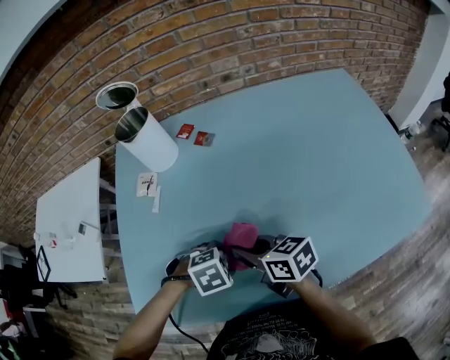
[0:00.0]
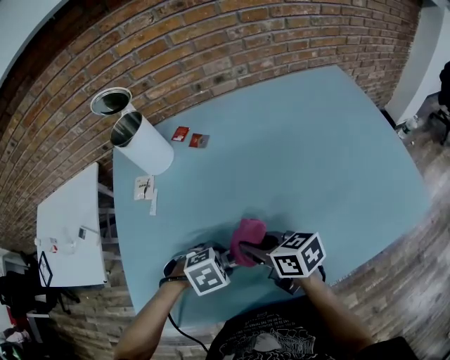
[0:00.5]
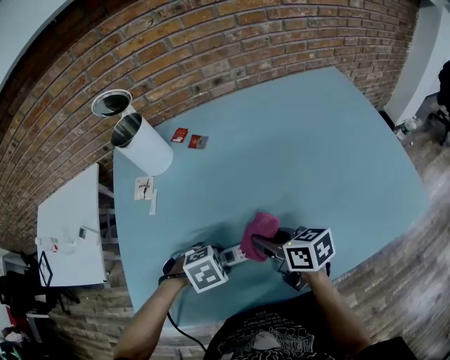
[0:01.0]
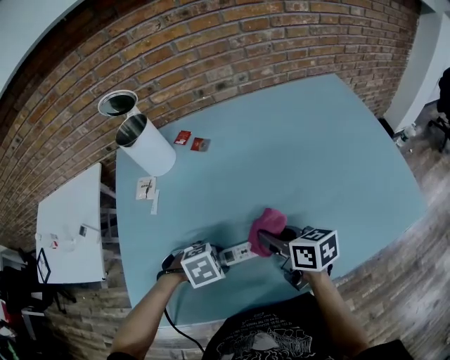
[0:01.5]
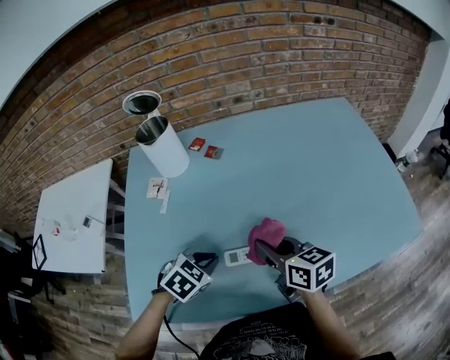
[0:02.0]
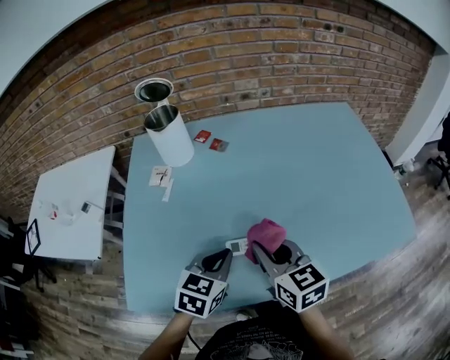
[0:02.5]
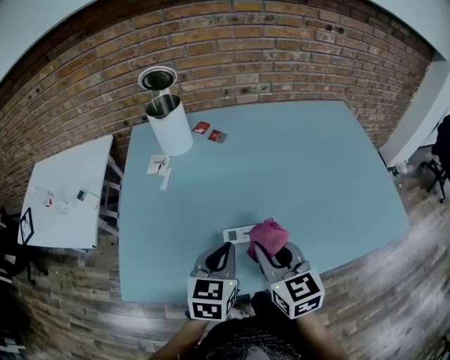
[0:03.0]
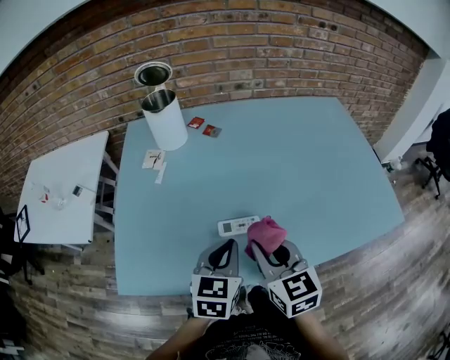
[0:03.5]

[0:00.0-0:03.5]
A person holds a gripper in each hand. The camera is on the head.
0:00.0 to 0:02.0: The left gripper heads upward, covering about 5 cm, changes its angle by roughly 30 degrees, and closes up. Meanwhile the right gripper changes place by about 10 cm.
0:02.0 to 0:03.5: The right gripper is displaced backward by roughly 10 cm, and turns by some 30 degrees, while the left gripper goes about 10 cm upward, backward and to the right, and rotates about 40 degrees.

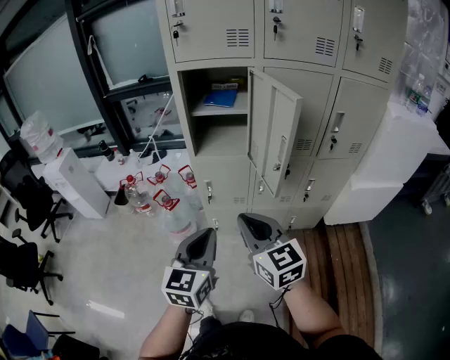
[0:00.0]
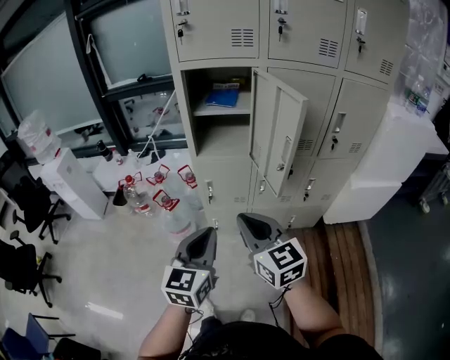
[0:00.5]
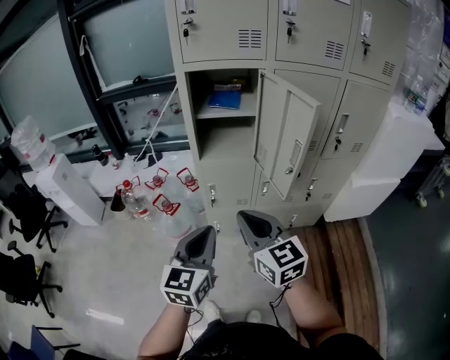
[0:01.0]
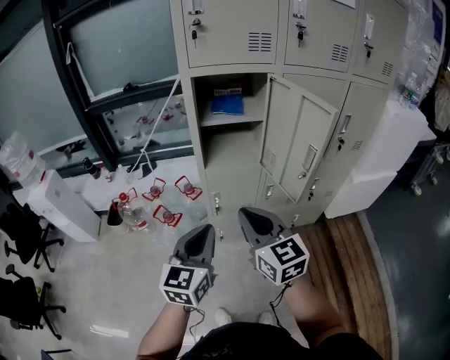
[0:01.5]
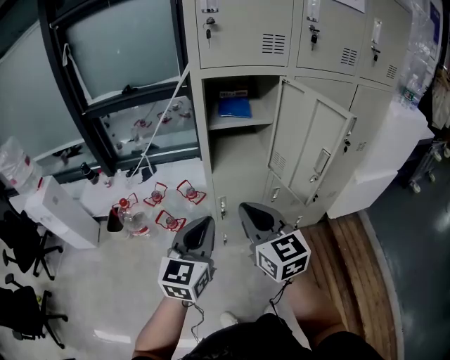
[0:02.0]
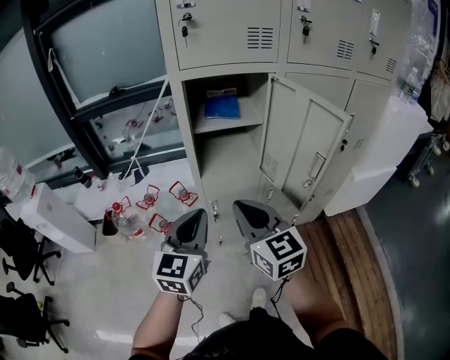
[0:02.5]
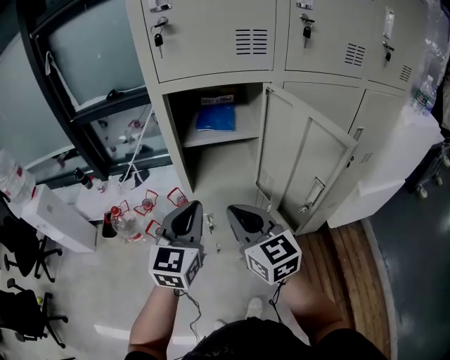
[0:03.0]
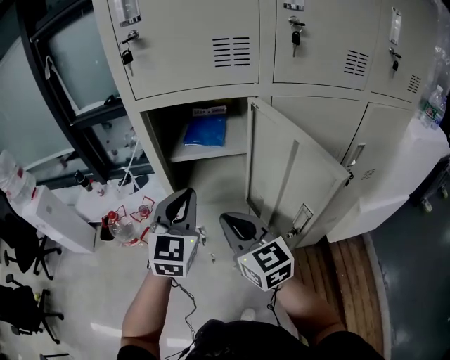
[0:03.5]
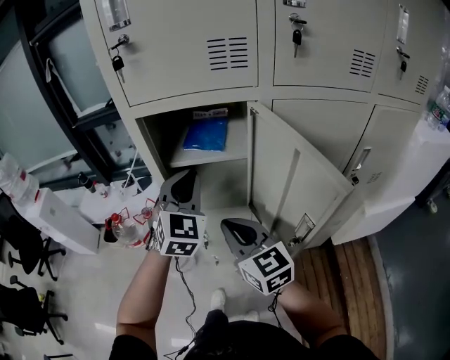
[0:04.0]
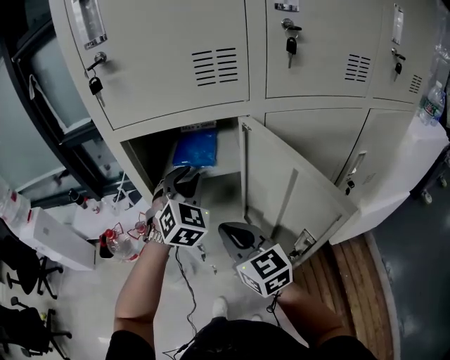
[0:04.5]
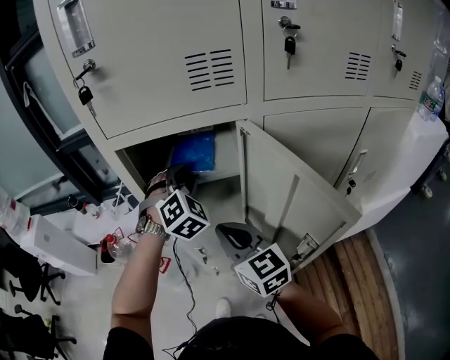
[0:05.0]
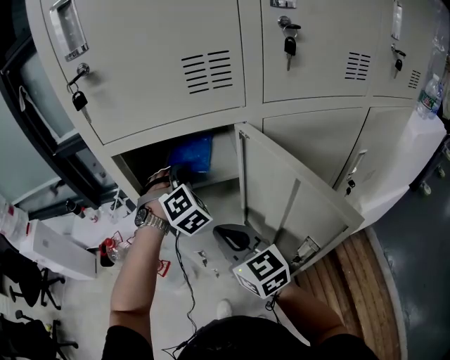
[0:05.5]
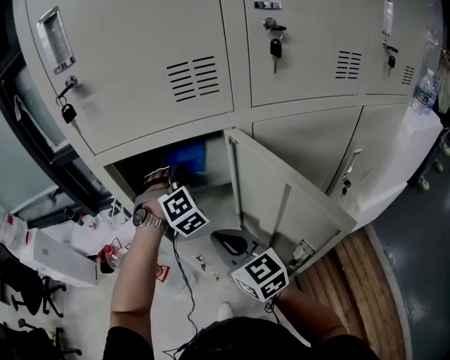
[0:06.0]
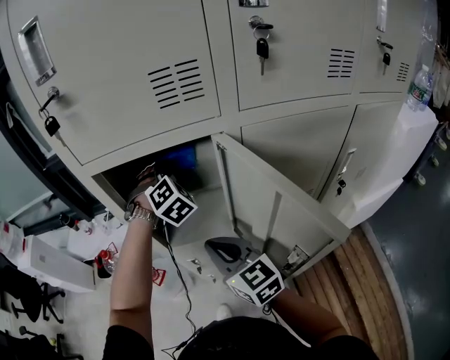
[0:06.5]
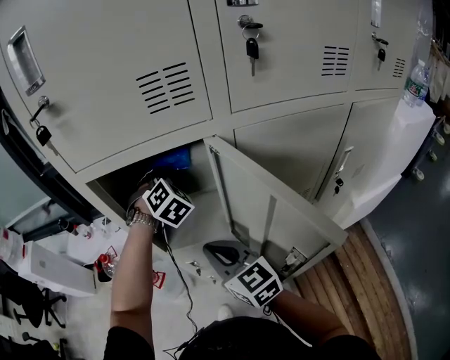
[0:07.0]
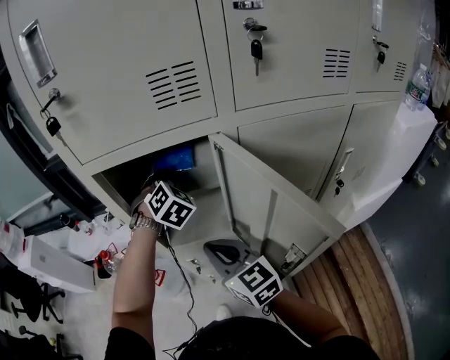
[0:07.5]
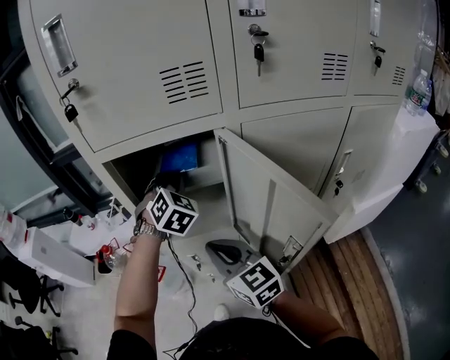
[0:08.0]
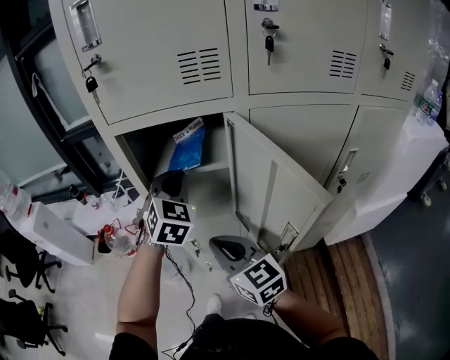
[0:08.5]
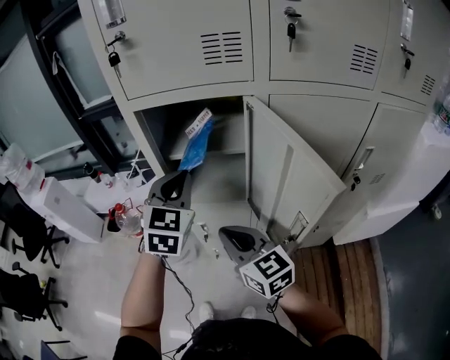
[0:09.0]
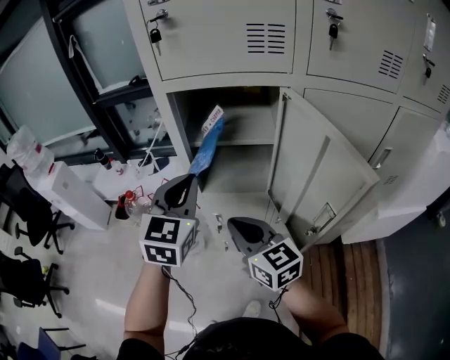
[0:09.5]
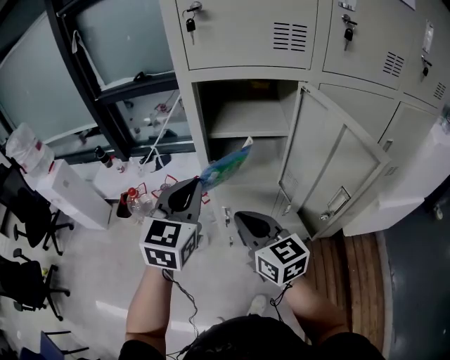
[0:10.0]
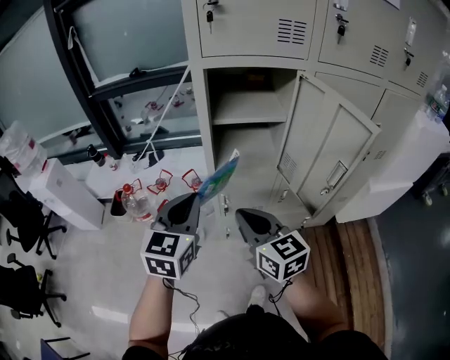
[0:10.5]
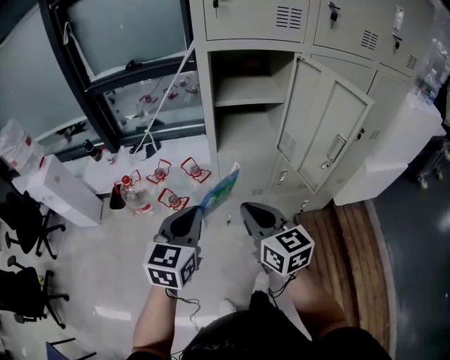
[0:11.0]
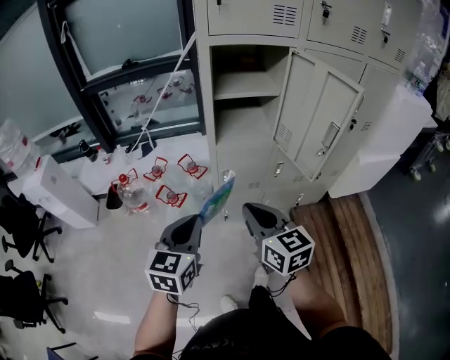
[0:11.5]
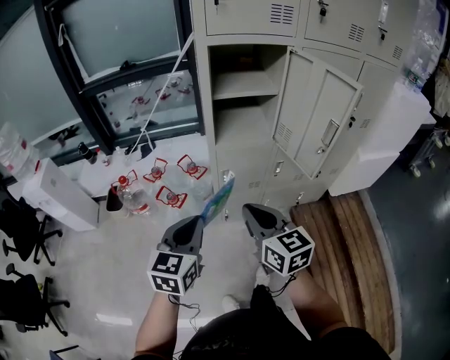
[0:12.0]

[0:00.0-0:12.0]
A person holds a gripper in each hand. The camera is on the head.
0:00.0 to 0:02.0: The grippers both shift to the left and forward by approximately 20 cm.
0:02.0 to 0:04.0: The right gripper goes roughly 20 cm forward and to the right, while the left gripper goes approximately 30 cm forward and to the right, and swivels approximately 40 degrees.
0:04.0 to 0:06.0: The right gripper shifts about 5 cm forward. Meanwhile the left gripper shifts about 15 cm forward and to the right, twists roughly 40 degrees clockwise, seen from behind, and opens up.
0:06.0 to 0:08.0: The left gripper turns by approximately 30 degrees, and closes its fingers.
0:08.0 to 0:10.0: The left gripper moves backward and to the left, about 25 cm, and turns by approximately 40 degrees. The right gripper moves to the left and backward, about 10 cm.
0:10.0 to 0:12.0: The left gripper heads backward, downward and to the left, covering about 25 cm. The right gripper moves backward and to the left, some 15 cm.

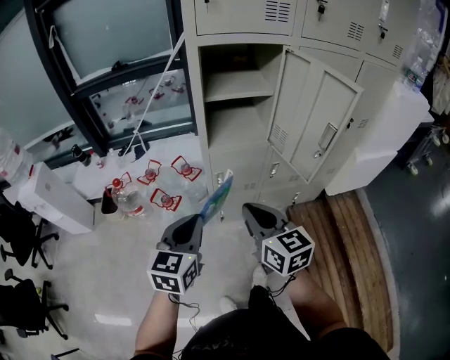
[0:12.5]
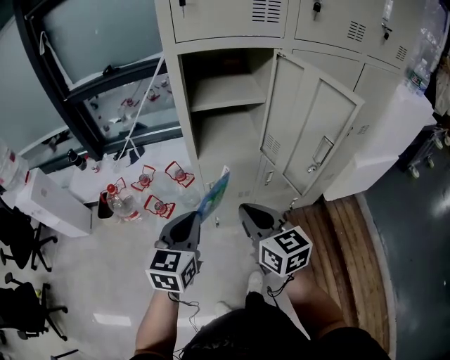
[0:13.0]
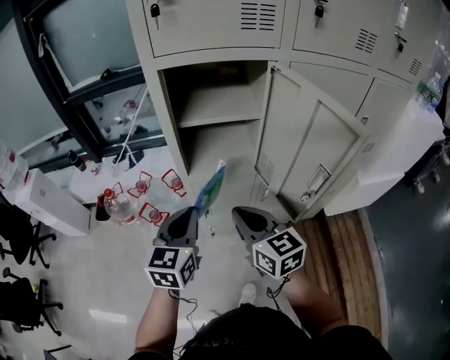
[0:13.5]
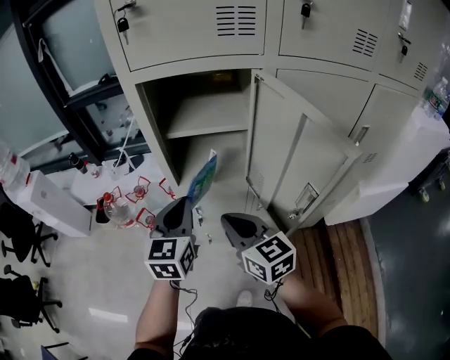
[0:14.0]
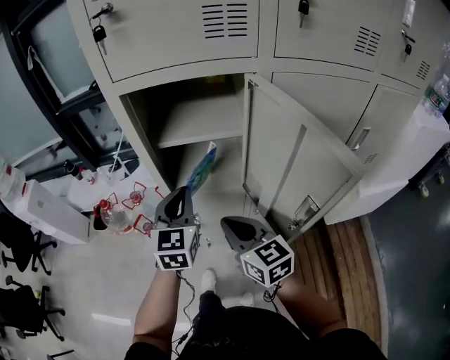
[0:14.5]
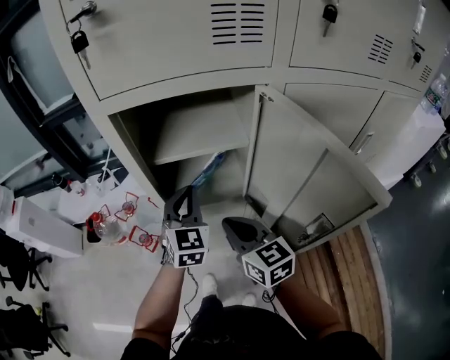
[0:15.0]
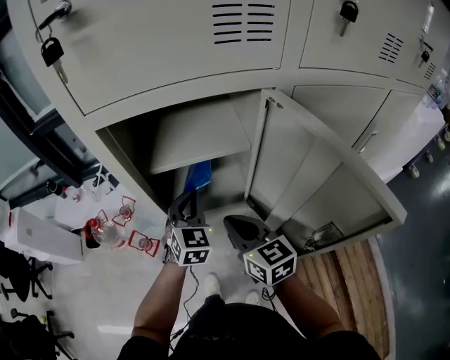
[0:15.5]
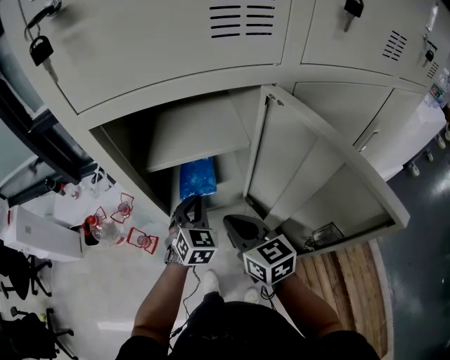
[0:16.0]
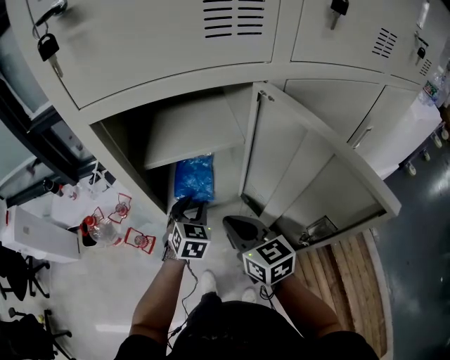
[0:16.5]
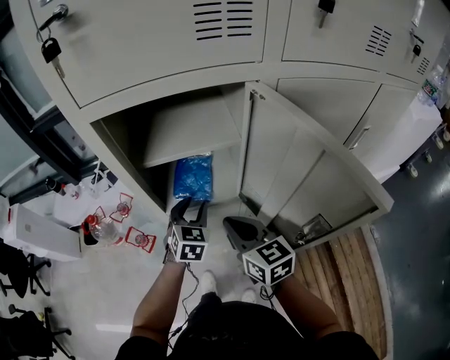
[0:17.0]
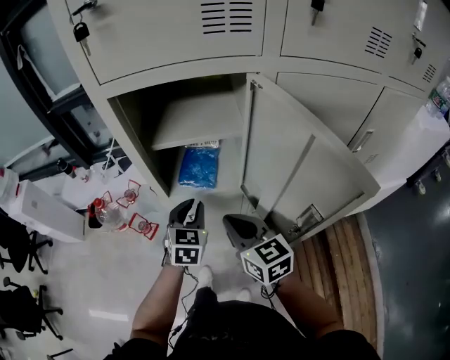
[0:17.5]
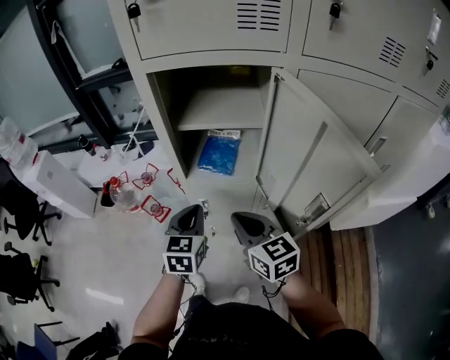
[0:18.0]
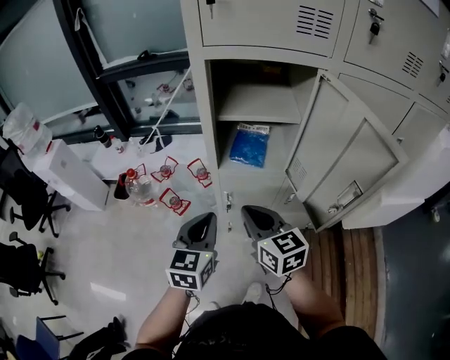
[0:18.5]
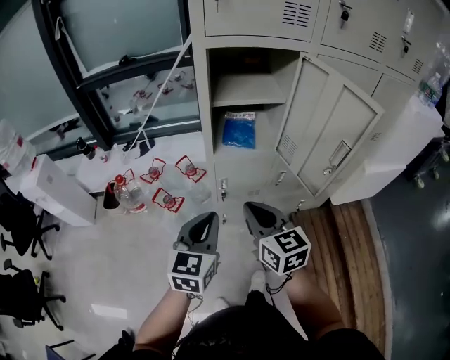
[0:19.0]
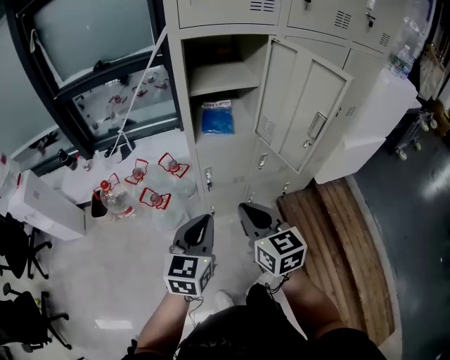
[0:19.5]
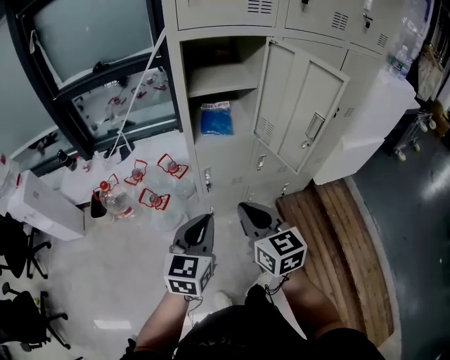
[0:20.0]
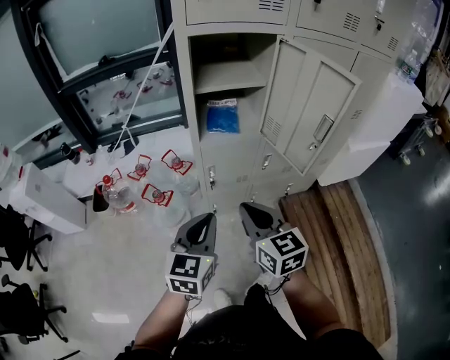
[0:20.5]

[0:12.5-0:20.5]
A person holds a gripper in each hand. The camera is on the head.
0:12.5 to 0:14.5: The grippers both shift forward and to the right by roughly 25 cm.
0:14.5 to 0:16.5: The left gripper goes approximately 15 cm downward and forward, changes its angle by roughly 30 degrees, and opens. Meanwhile the right gripper goes some 5 cm forward.
0:16.5 to 0:18.5: The left gripper moves backward, to the left and upward, approximately 25 cm, turns by some 30 degrees, and closes its fingers. The right gripper moves to the left and backward, about 15 cm.
0:18.5 to 0:20.5: Both grippers move backward, some 15 cm.

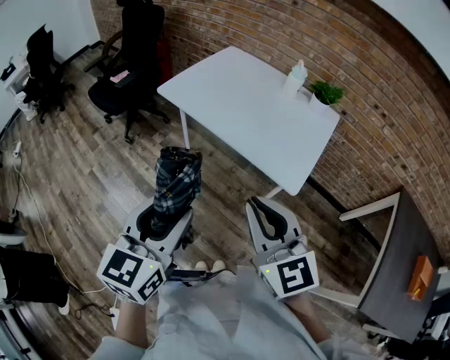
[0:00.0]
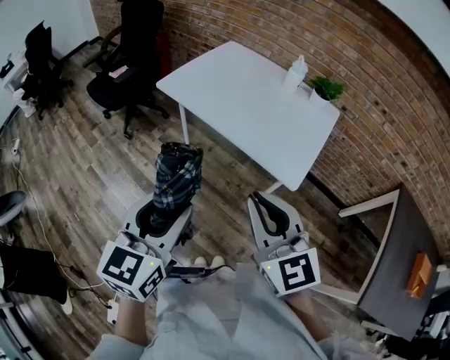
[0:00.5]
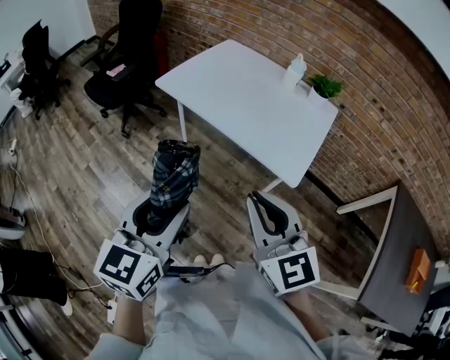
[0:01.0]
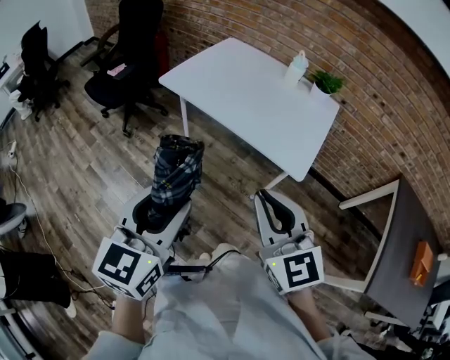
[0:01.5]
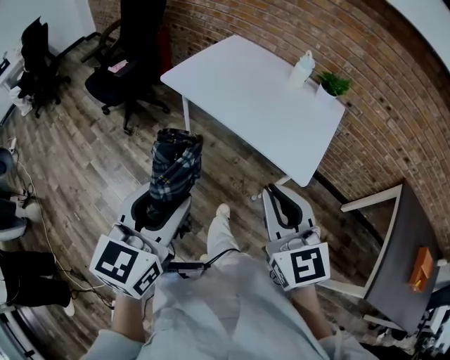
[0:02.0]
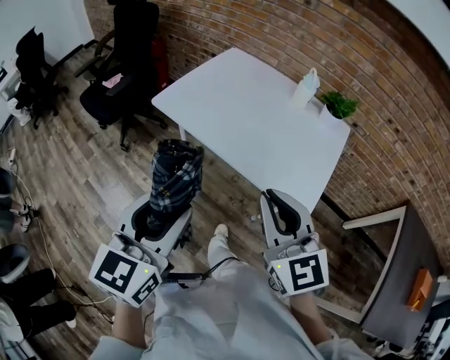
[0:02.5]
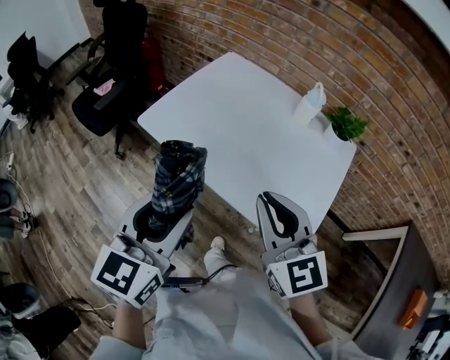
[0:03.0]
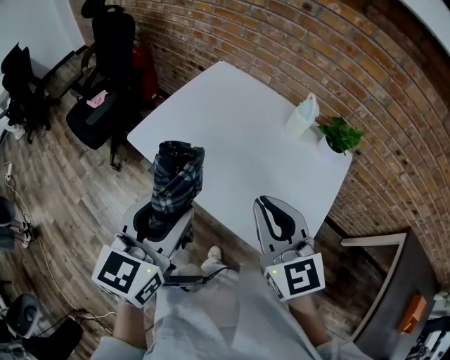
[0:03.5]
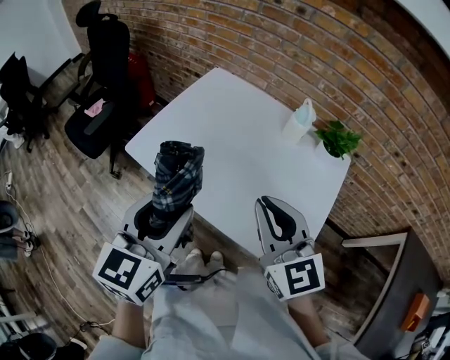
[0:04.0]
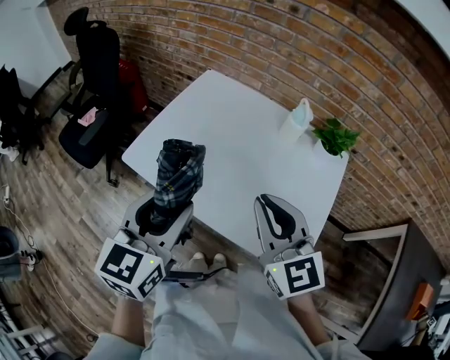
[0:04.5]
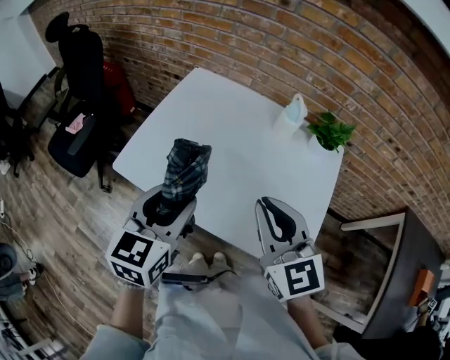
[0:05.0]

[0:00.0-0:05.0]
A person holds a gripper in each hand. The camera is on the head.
0:00.0 to 0:02.5: Both grippers travel together forward, roughly 15 cm.
0:02.5 to 0:05.0: The two grippers go some 30 cm forward.
